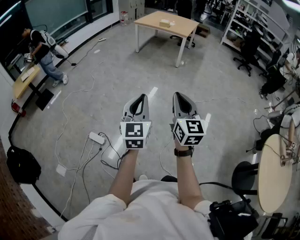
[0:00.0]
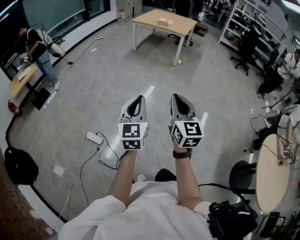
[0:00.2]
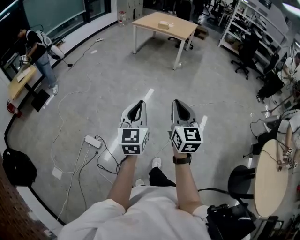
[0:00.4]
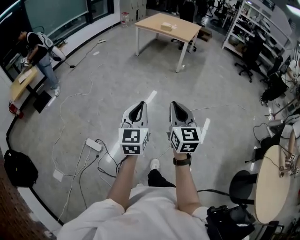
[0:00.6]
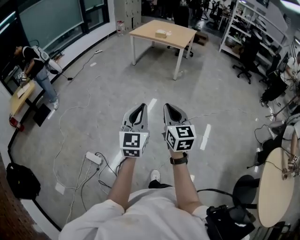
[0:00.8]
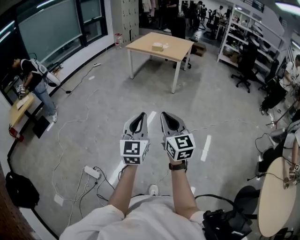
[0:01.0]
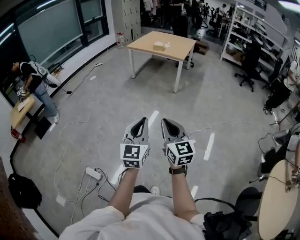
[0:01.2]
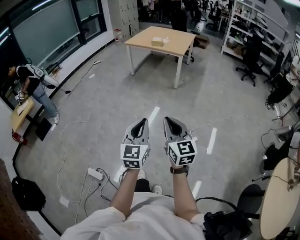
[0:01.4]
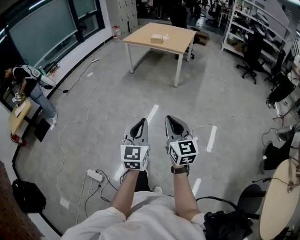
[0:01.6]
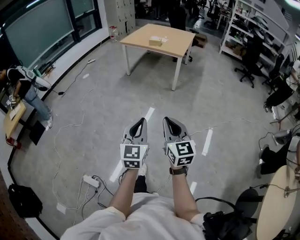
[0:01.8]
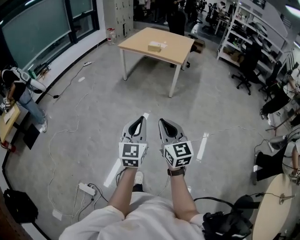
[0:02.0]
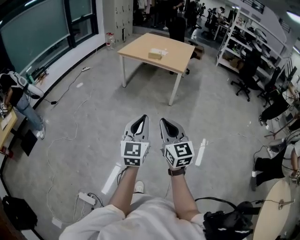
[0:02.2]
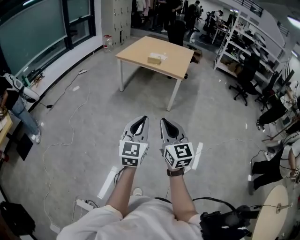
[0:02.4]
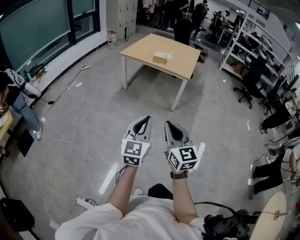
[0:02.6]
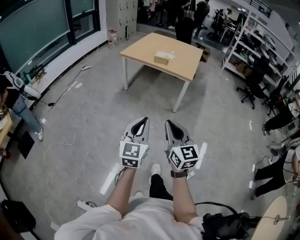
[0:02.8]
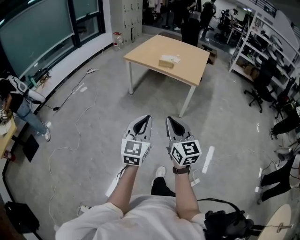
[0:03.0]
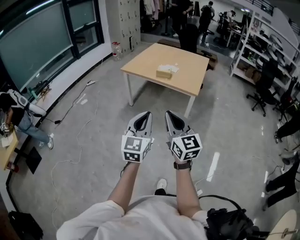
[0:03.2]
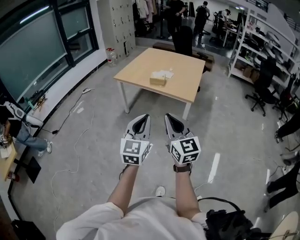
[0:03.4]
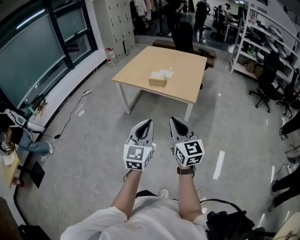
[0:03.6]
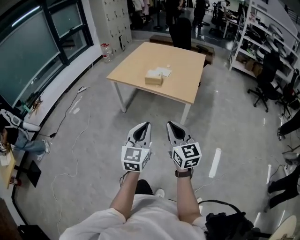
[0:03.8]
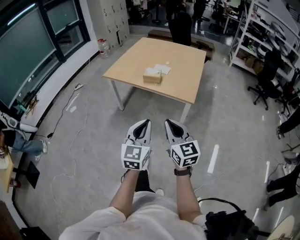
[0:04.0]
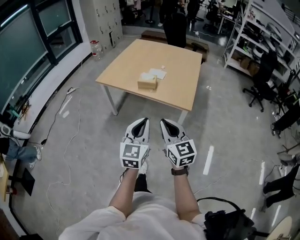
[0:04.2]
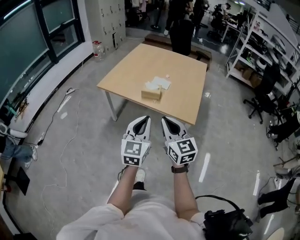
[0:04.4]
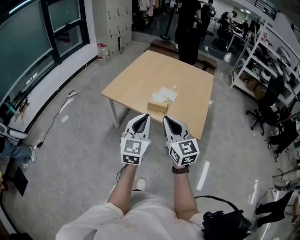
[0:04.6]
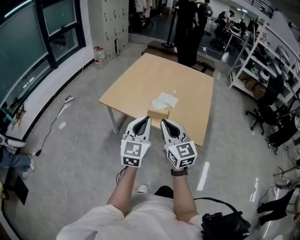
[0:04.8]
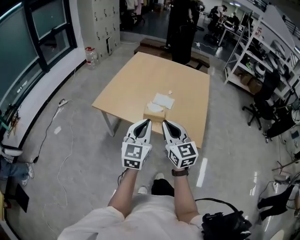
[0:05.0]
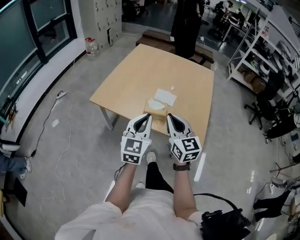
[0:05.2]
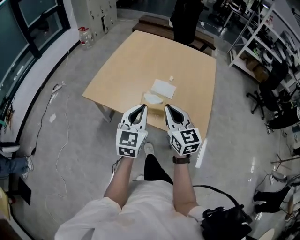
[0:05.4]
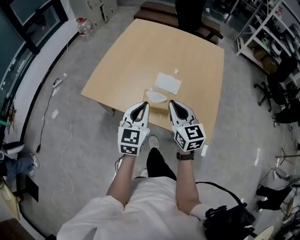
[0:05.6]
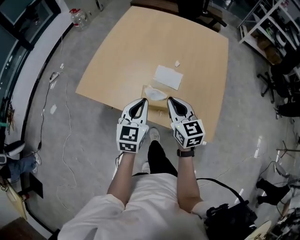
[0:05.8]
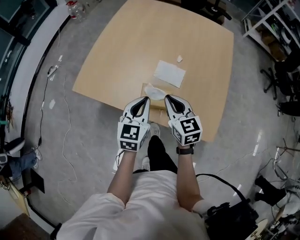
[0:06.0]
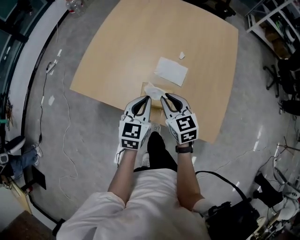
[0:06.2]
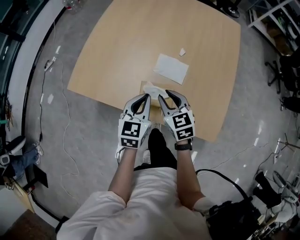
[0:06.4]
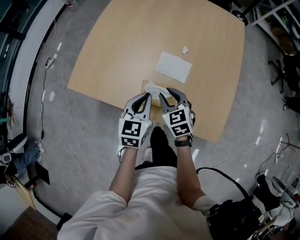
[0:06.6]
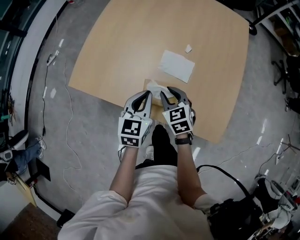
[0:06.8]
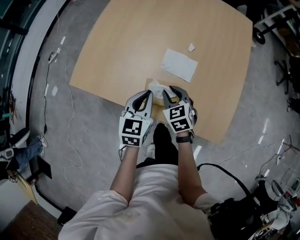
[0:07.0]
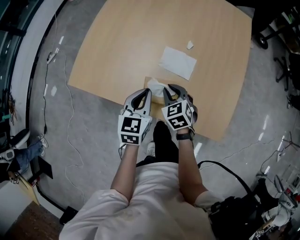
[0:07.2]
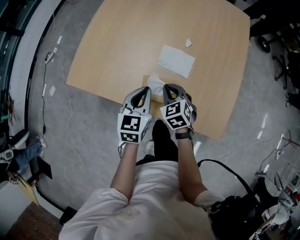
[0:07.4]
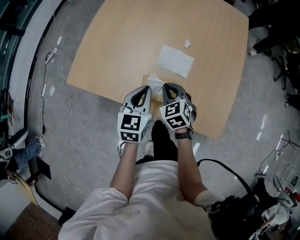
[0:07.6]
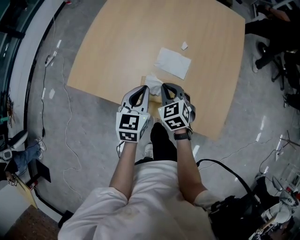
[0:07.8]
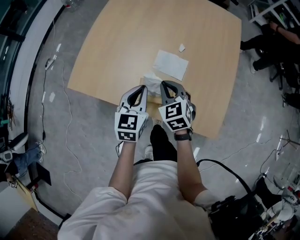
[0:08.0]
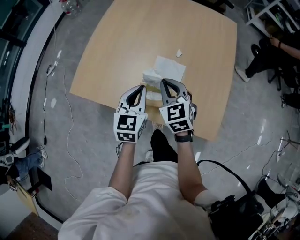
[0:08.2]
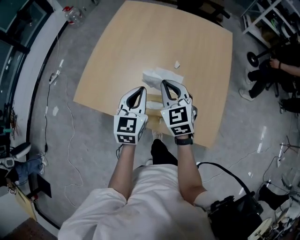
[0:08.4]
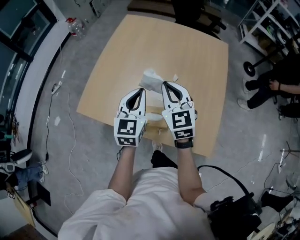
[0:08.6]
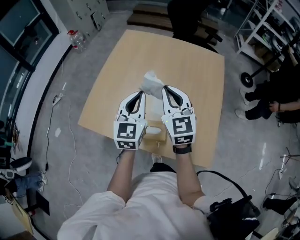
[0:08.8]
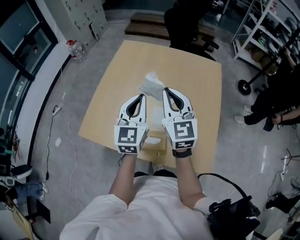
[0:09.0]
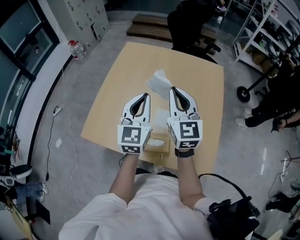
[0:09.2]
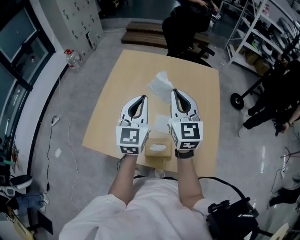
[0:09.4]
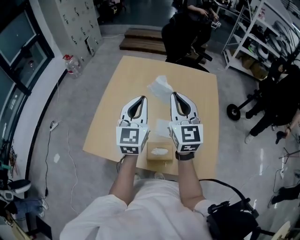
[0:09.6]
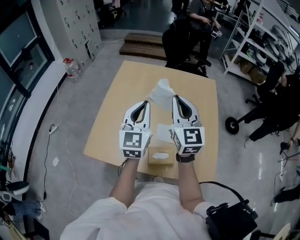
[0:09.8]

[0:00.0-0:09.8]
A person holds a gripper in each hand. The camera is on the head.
0:00.0 to 0:01.4: The left gripper moves forward and to the right, about 30 cm, while the right gripper goes some 30 cm forward.
0:01.4 to 0:02.8: The pair of grippers is taken forward, about 50 cm.
0:02.8 to 0:04.2: The two grippers travel together, forward, about 60 cm.
0:04.2 to 0:05.6: Both grippers are carried forward, some 50 cm.
0:05.6 to 0:07.0: Both grippers move downward and forward, about 25 cm. The right gripper tips its fingers downward by approximately 30 degrees, and opens up.
0:07.0 to 0:08.4: The right gripper is displaced upward by approximately 20 cm, turns by about 20 degrees, and closes its fingers, while the left gripper travels upward by roughly 10 cm.
0:08.4 to 0:09.8: The right gripper heads upward, covering roughly 20 cm, and turns by about 30 degrees. The left gripper moves upward and forward, approximately 20 cm, and swivels some 20 degrees.

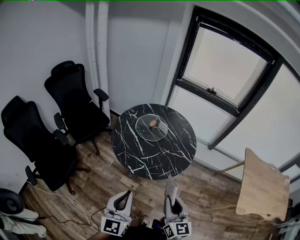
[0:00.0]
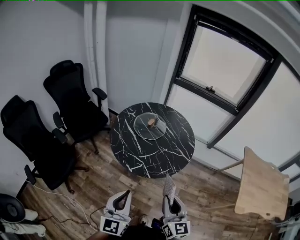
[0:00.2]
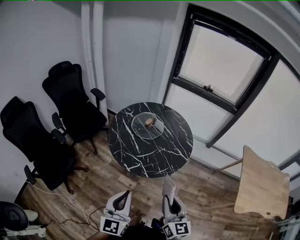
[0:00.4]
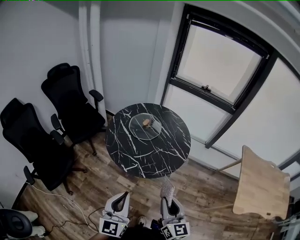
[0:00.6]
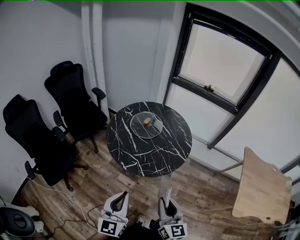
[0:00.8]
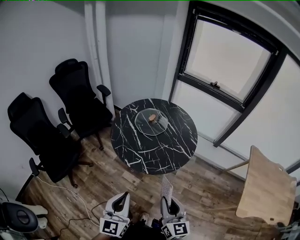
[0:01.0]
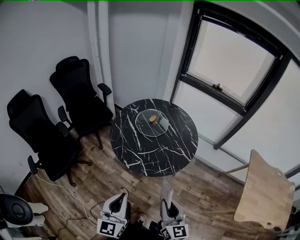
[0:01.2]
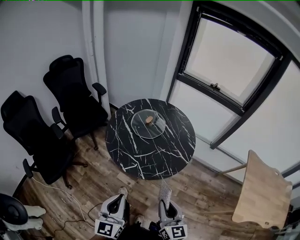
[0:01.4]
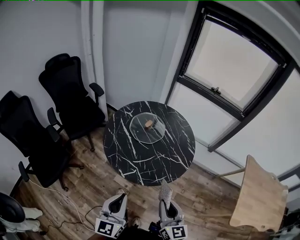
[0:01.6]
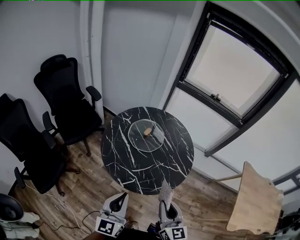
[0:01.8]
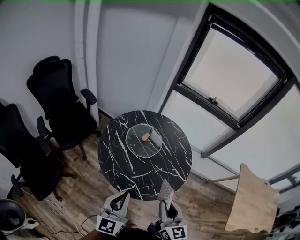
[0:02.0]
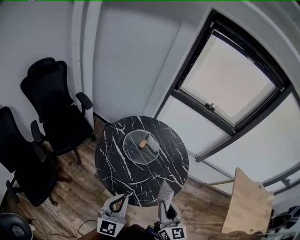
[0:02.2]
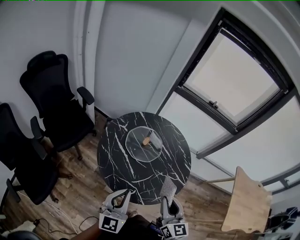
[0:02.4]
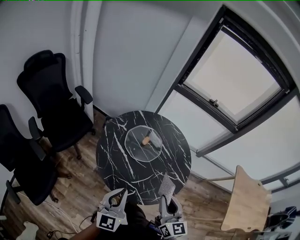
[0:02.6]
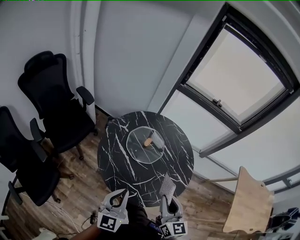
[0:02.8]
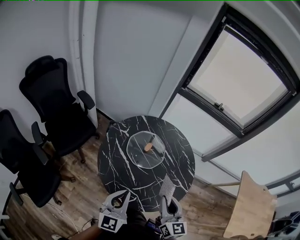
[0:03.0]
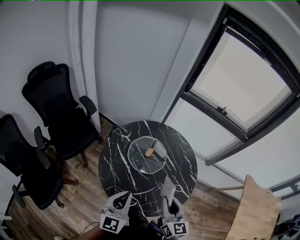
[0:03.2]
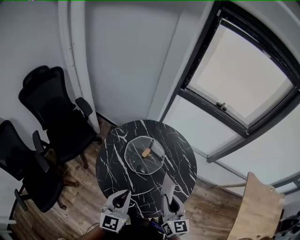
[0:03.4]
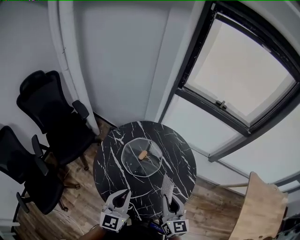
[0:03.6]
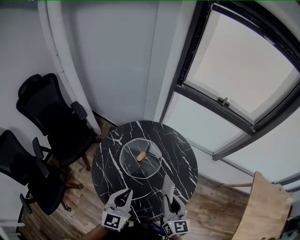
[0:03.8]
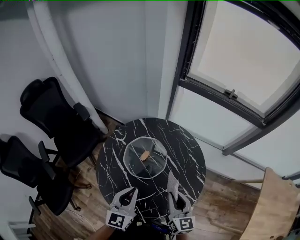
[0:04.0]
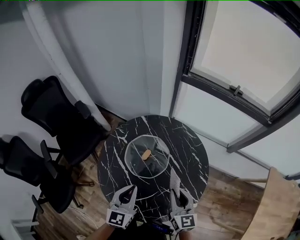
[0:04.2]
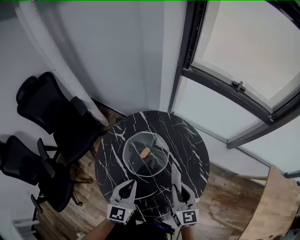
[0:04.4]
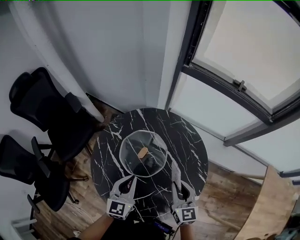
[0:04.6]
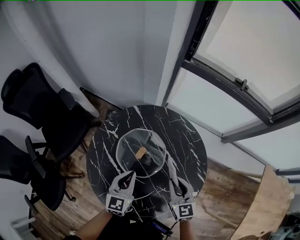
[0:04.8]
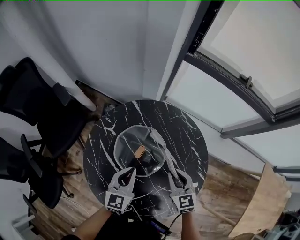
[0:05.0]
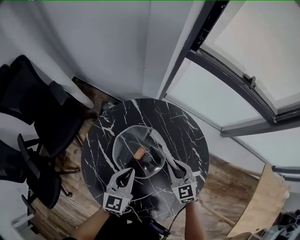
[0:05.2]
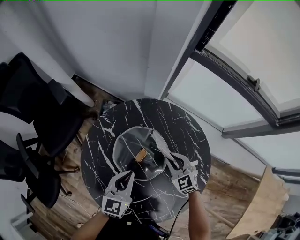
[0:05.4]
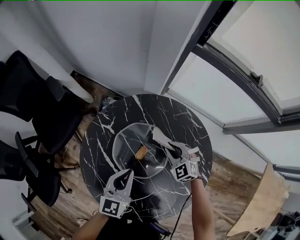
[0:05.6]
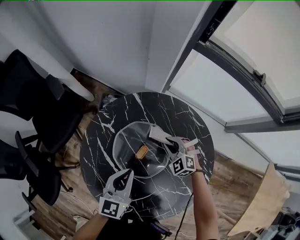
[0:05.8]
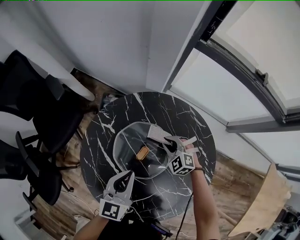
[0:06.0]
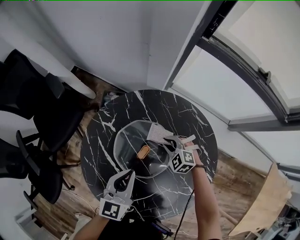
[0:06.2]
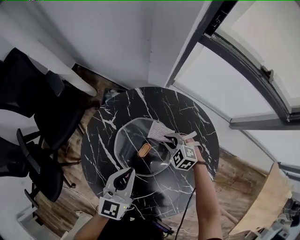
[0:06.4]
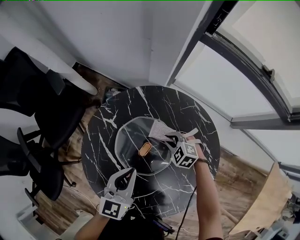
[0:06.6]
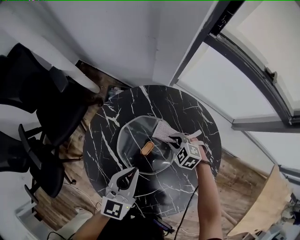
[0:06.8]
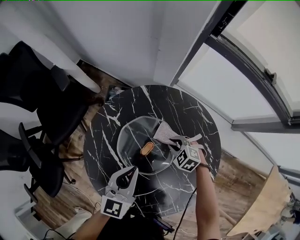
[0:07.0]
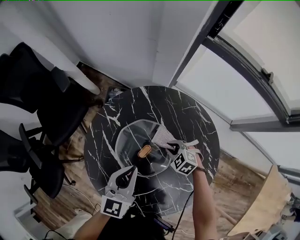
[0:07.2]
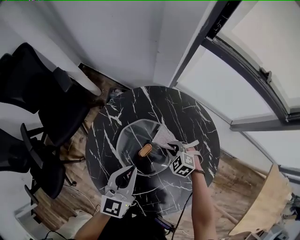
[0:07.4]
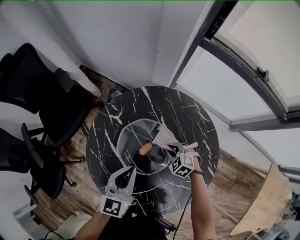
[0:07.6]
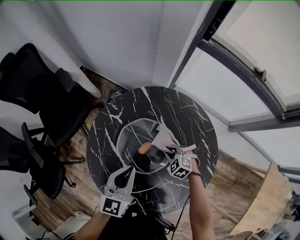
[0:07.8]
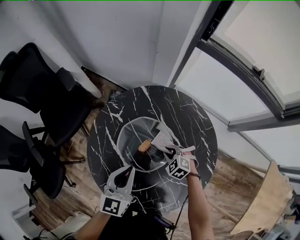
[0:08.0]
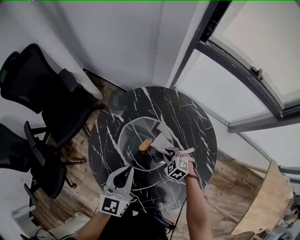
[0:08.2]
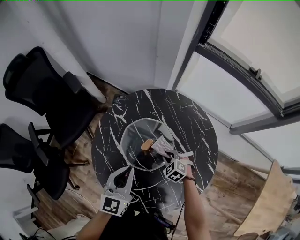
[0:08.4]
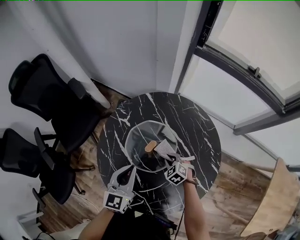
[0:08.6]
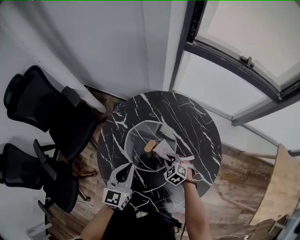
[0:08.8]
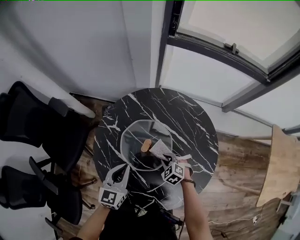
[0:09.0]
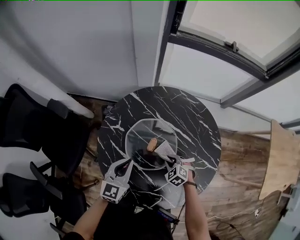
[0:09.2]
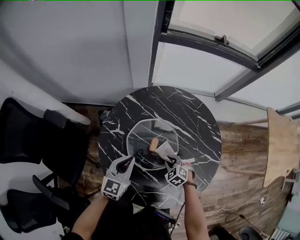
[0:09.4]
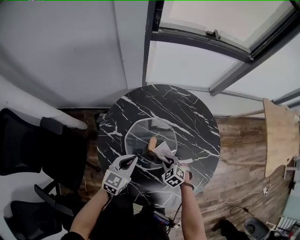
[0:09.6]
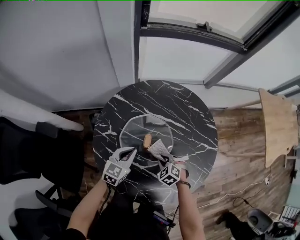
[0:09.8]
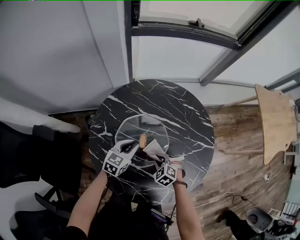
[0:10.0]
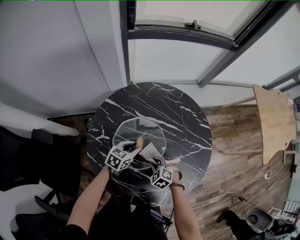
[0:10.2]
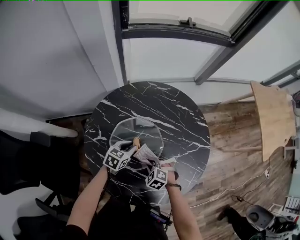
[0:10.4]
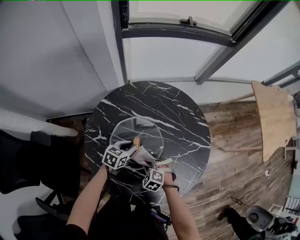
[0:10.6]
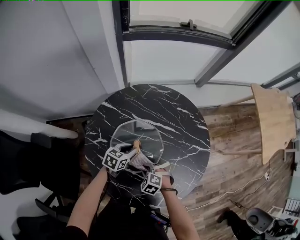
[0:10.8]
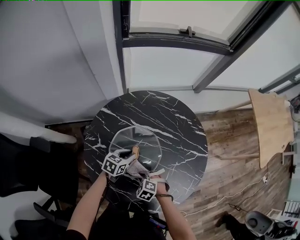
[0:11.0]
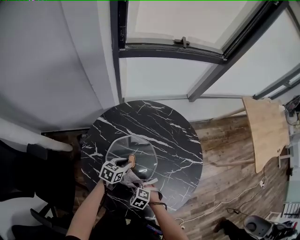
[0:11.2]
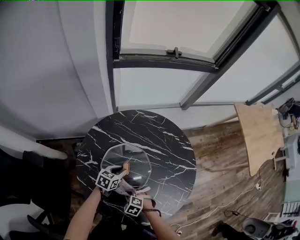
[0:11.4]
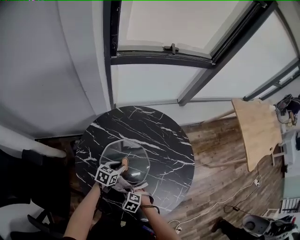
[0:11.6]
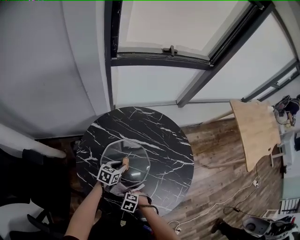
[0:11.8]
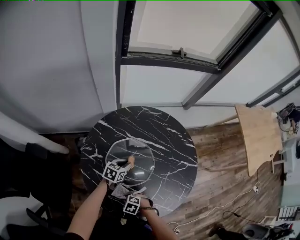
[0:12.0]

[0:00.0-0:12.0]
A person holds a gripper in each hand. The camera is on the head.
0:00.0 to 0:01.6: The two grippers go roughly 5 cm forward.
0:01.6 to 0:03.0: Both grippers move forward, approximately 25 cm.
0:03.0 to 0:04.4: Both grippers move forward, to the right and downward, roughly 25 cm.
0:04.4 to 0:06.0: The right gripper travels downward and forward by approximately 35 cm, and angles its fingers downward, by about 30 degrees; the left gripper travels forward and downward by roughly 15 cm.
0:06.0 to 0:07.6: The right gripper goes approximately 10 cm backward.
0:07.6 to 0:09.0: The right gripper shifts approximately 10 cm backward and to the left, and turns by approximately 20 degrees; the left gripper goes roughly 5 cm to the left.
0:09.0 to 0:10.4: The left gripper shifts roughly 15 cm downward, turns by about 50 degrees, and opens. The right gripper changes place by about 10 cm.
0:10.4 to 0:12.0: The right gripper changes place by some 15 cm, and rotates about 20 degrees.

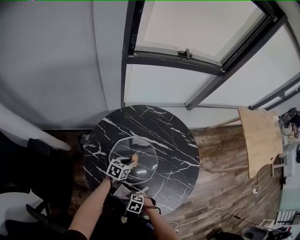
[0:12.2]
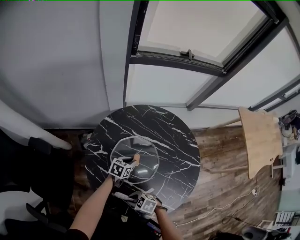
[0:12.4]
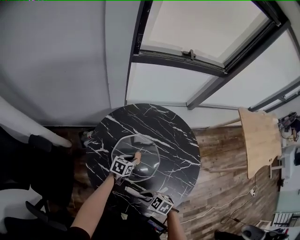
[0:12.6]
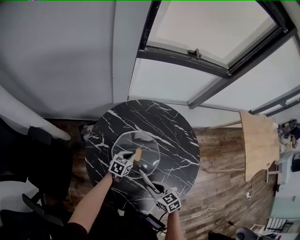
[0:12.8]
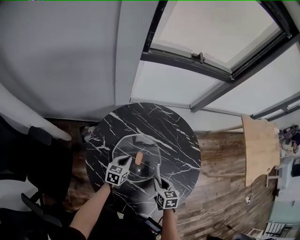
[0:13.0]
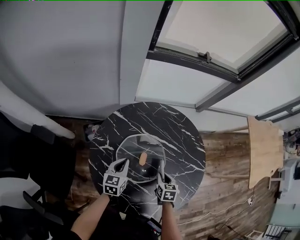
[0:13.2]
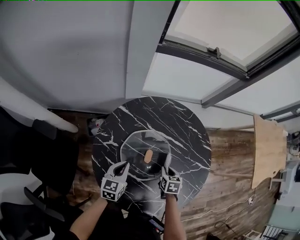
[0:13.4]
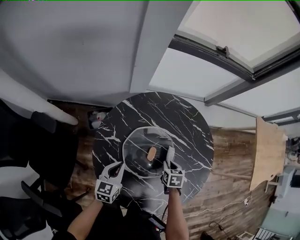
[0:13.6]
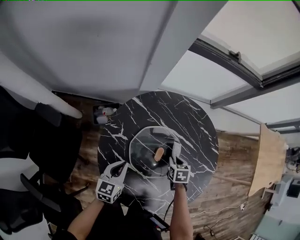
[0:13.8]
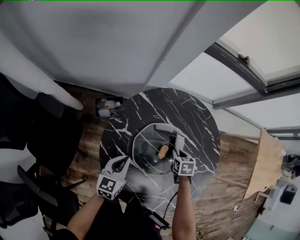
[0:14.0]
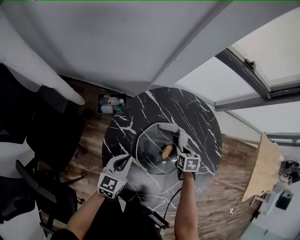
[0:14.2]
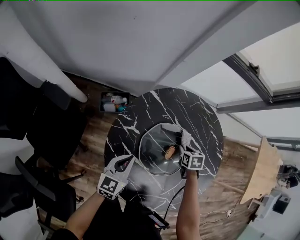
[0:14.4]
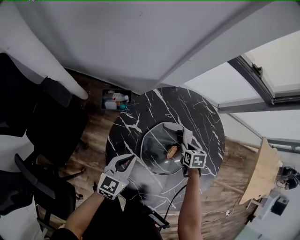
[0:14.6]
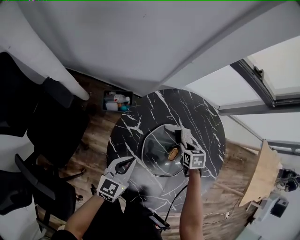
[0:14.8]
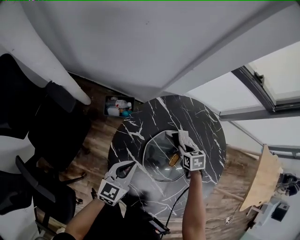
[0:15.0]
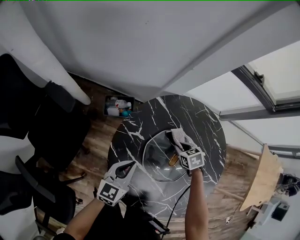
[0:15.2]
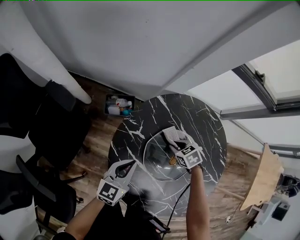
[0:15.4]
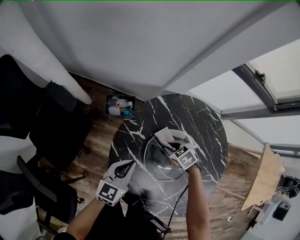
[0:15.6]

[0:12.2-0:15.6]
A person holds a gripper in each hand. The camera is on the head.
0:12.2 to 0:13.8: The right gripper moves approximately 30 cm, and changes its angle by roughly 60 degrees. Meanwhile the left gripper moves some 20 cm, turns by some 30 degrees, and closes its fingers.
0:13.8 to 0:15.6: The right gripper changes place by about 15 cm, and rotates around the line of its fingers by approximately 40 degrees, counterclockwise from behind, while the left gripper ends up some 5 cm from where it was.
